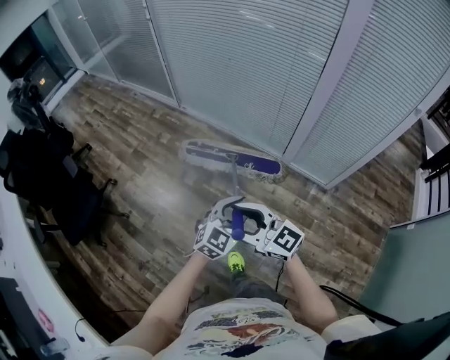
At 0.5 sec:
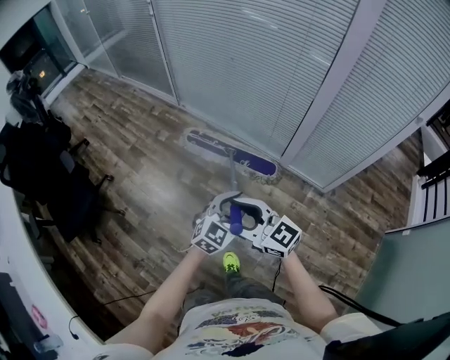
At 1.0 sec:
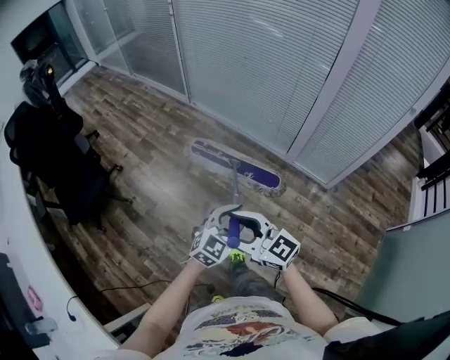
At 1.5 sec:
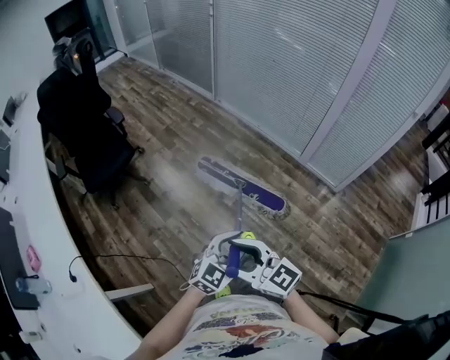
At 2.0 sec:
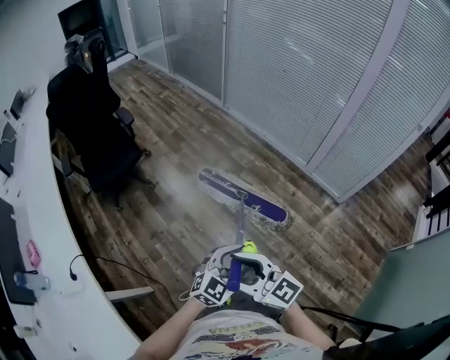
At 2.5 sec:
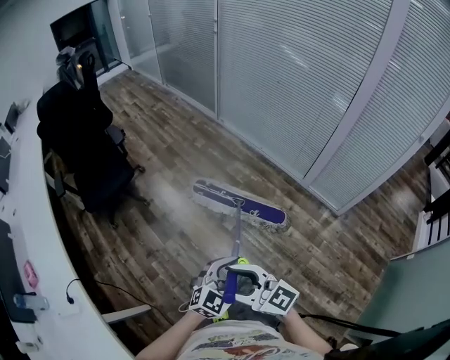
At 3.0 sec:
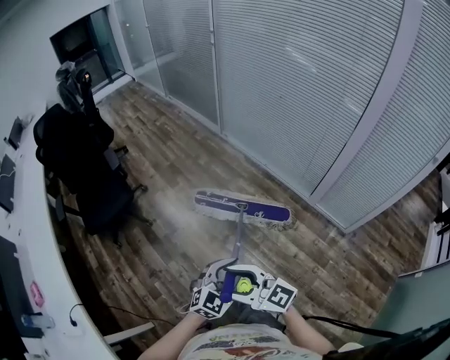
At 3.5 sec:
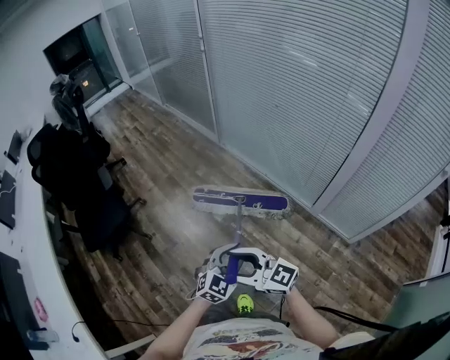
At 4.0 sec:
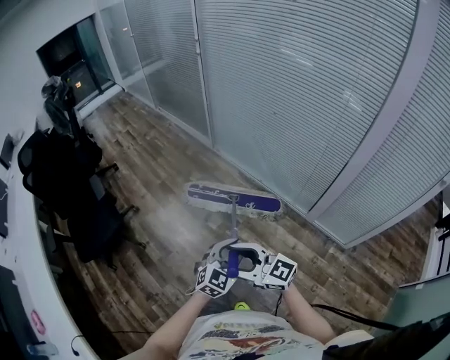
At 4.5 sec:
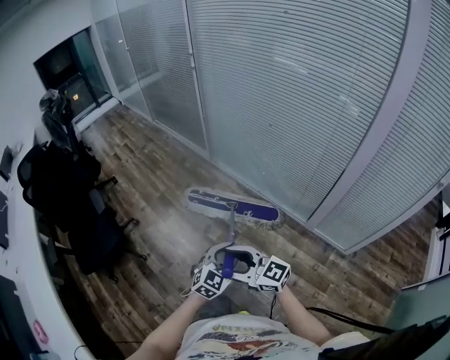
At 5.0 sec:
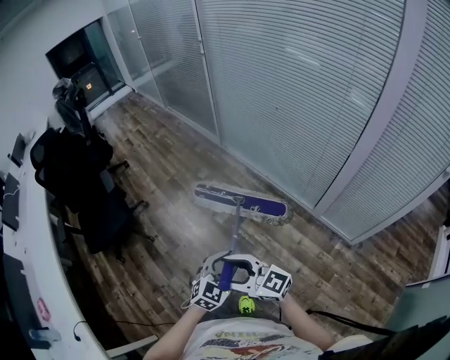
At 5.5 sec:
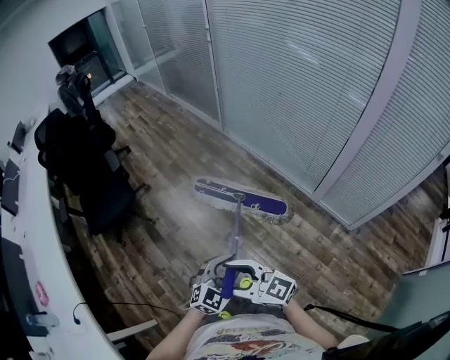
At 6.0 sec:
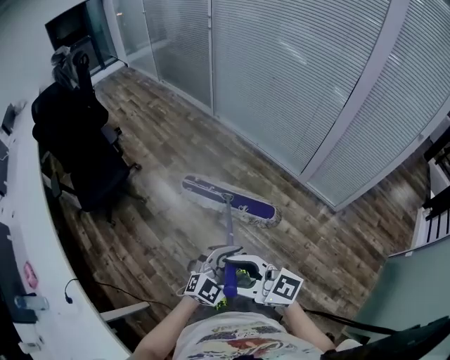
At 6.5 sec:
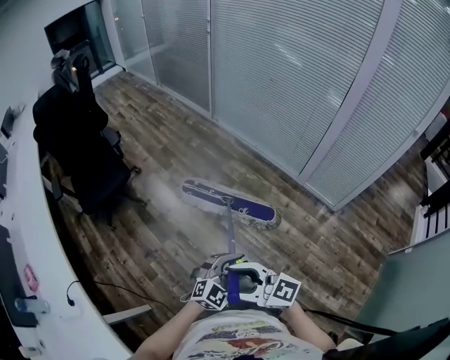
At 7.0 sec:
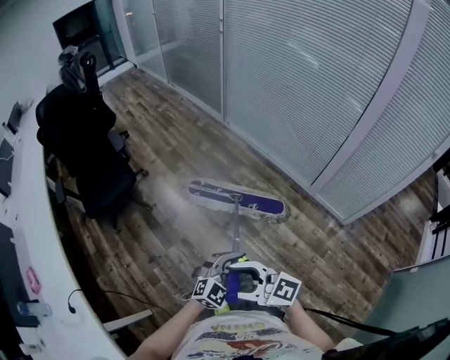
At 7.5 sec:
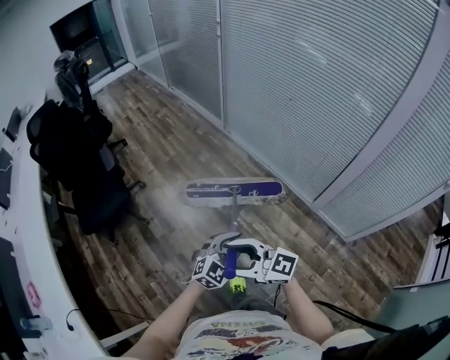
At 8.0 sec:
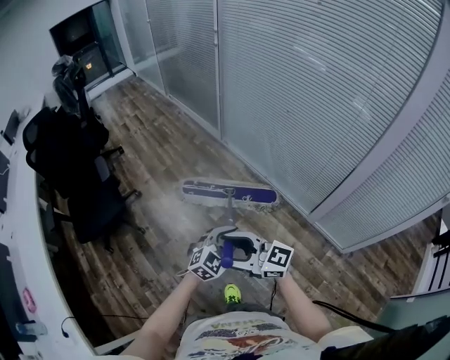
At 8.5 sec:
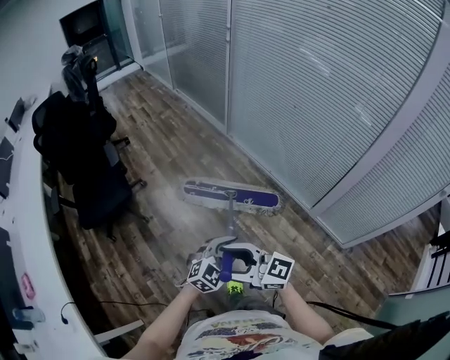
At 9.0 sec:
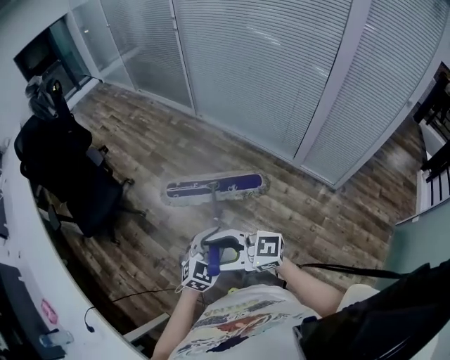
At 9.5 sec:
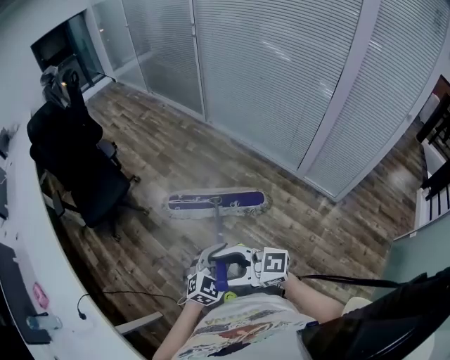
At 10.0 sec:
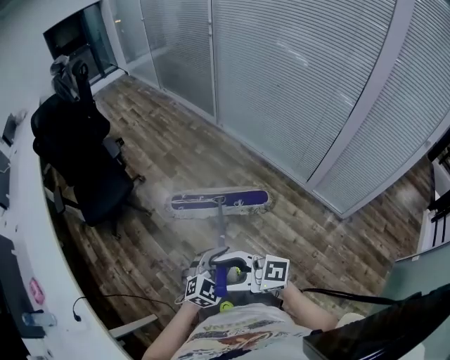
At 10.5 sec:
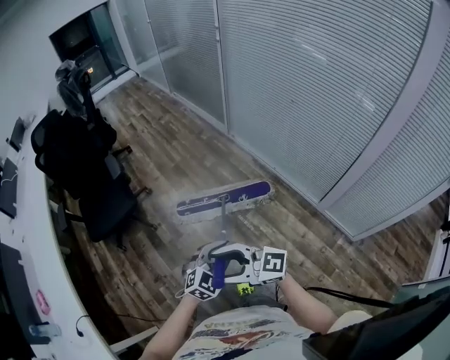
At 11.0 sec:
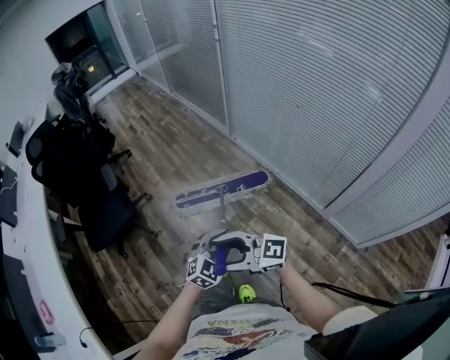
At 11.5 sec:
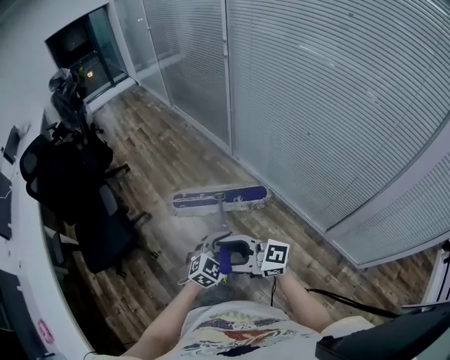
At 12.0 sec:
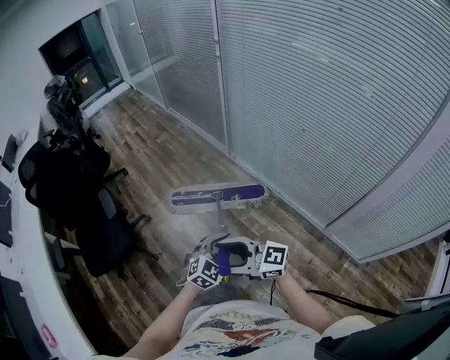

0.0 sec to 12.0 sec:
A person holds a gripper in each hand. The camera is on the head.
0.0 sec to 2.0 sec: The two grippers travel together, backward and to the left, roughly 50 cm.
2.0 sec to 4.0 sec: Both grippers are carried forward and to the right, roughly 50 cm.
4.0 sec to 6.0 sec: Both grippers are carried backward and to the left, roughly 40 cm.
6.0 sec to 8.0 sec: The pair of grippers is taken forward and to the right, approximately 40 cm.
8.0 sec to 10.0 sec: Both grippers travel together backward and to the left, some 35 cm.
10.0 sec to 12.0 sec: The pair of grippers is taken roughly 50 cm.

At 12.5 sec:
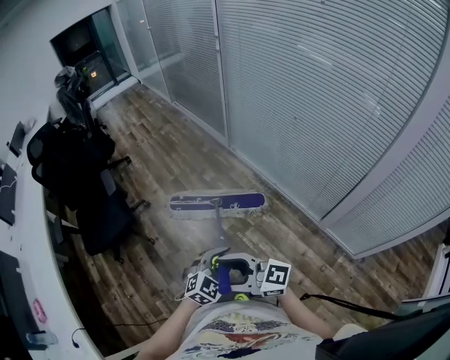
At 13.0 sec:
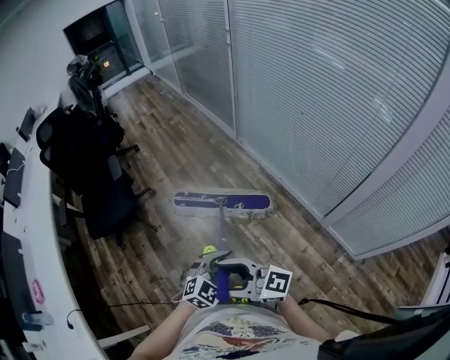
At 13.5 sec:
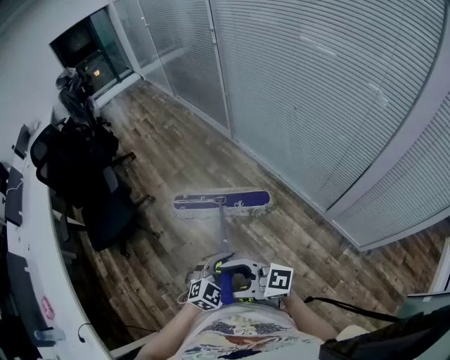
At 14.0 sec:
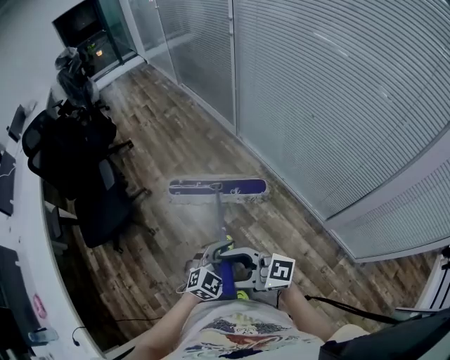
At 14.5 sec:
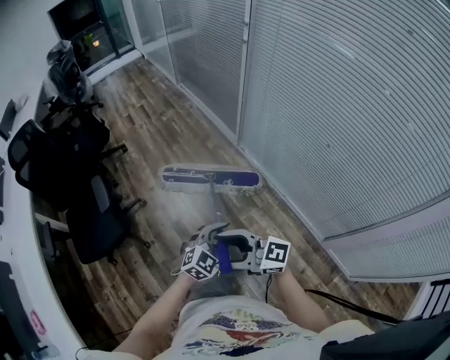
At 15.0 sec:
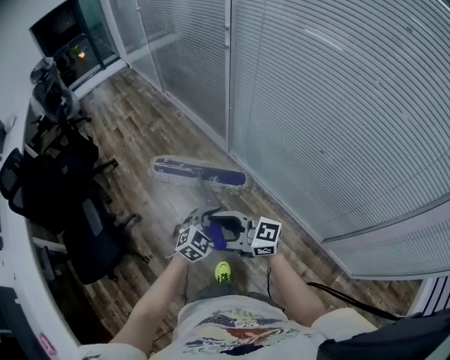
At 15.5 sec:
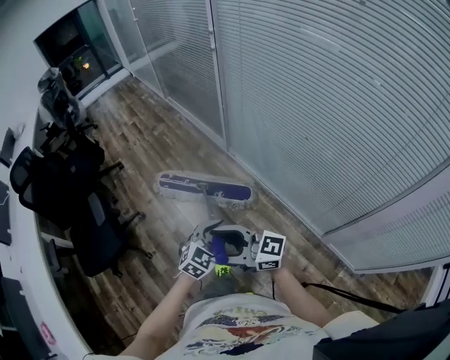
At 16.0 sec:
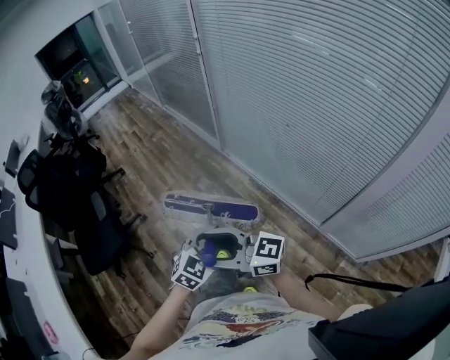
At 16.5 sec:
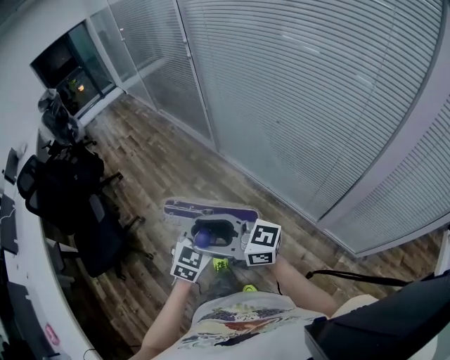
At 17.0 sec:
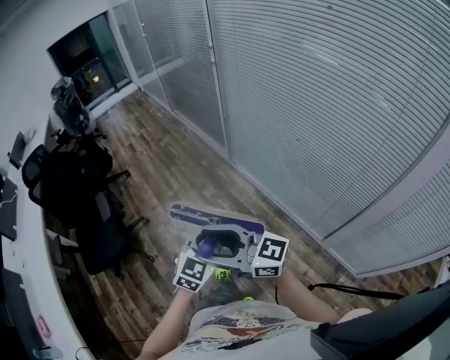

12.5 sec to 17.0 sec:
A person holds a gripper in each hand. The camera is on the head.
12.5 sec to 14.5 sec: The left gripper shifts by about 35 cm, while the right gripper changes place by roughly 35 cm.
14.5 sec to 17.0 sec: The left gripper ends up approximately 20 cm from where it was, while the right gripper ends up approximately 20 cm from where it was.

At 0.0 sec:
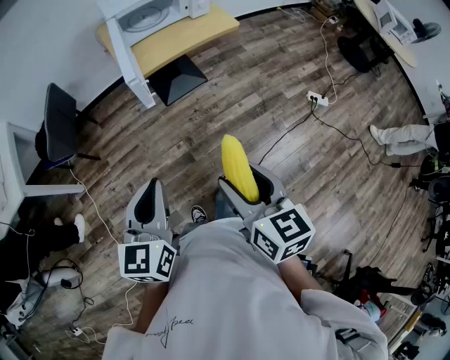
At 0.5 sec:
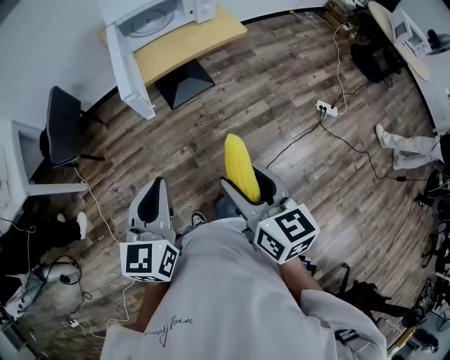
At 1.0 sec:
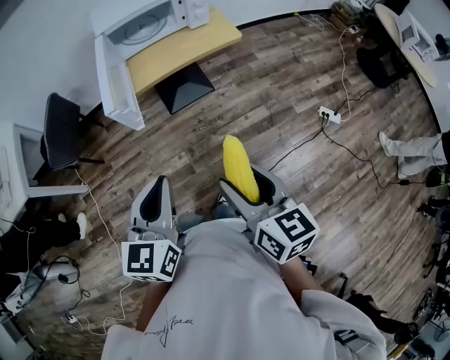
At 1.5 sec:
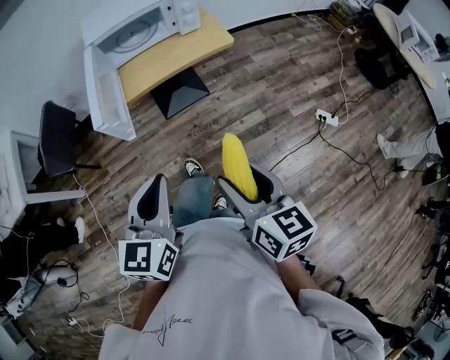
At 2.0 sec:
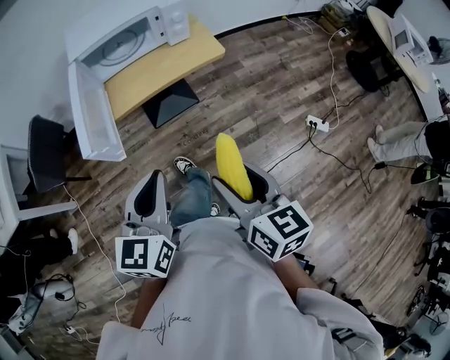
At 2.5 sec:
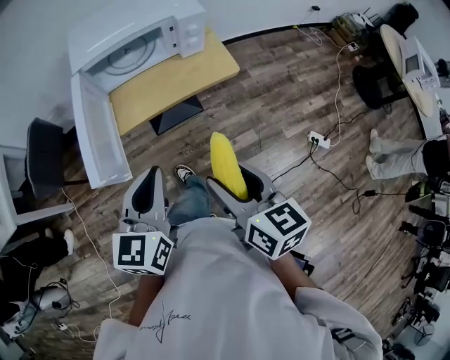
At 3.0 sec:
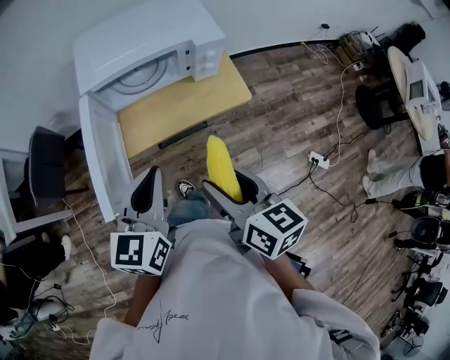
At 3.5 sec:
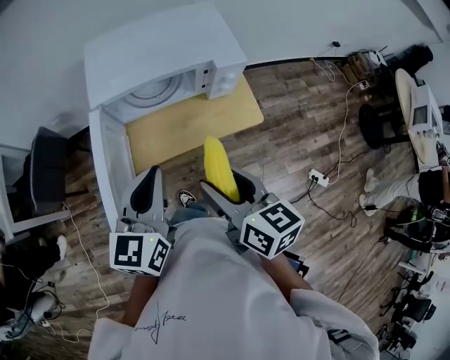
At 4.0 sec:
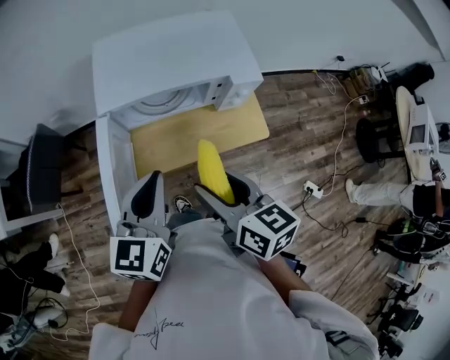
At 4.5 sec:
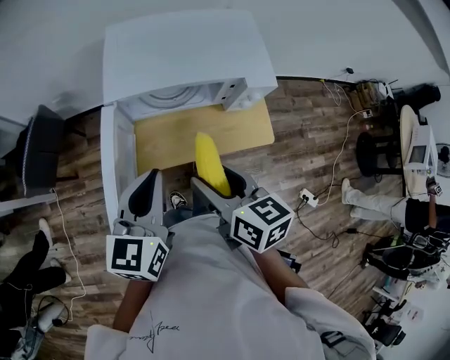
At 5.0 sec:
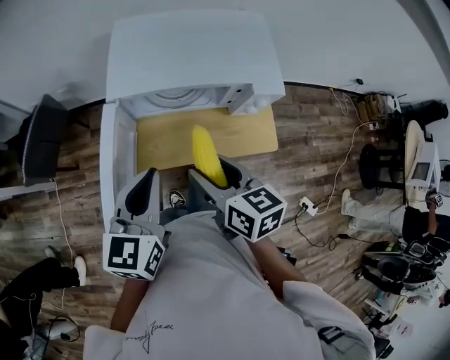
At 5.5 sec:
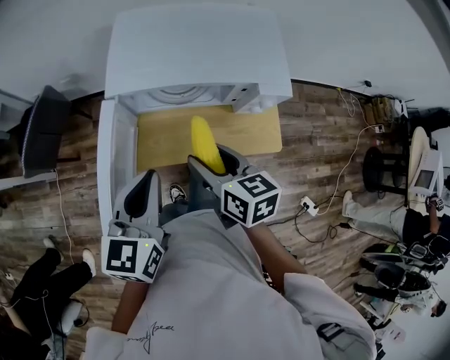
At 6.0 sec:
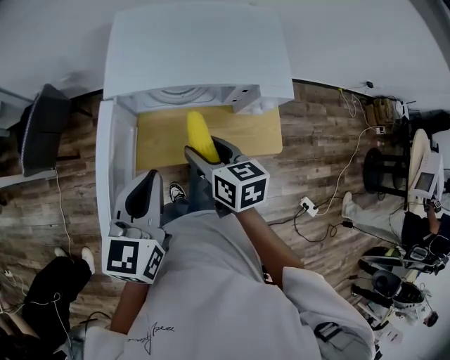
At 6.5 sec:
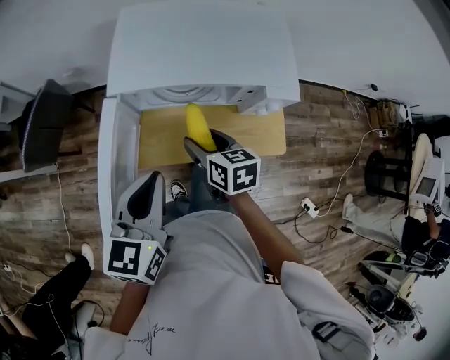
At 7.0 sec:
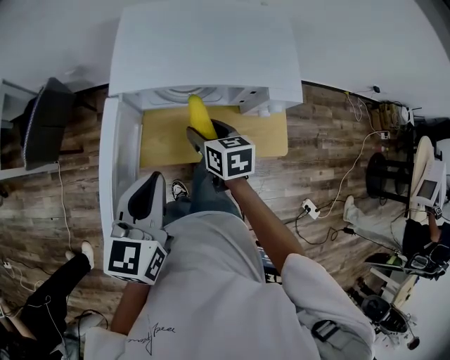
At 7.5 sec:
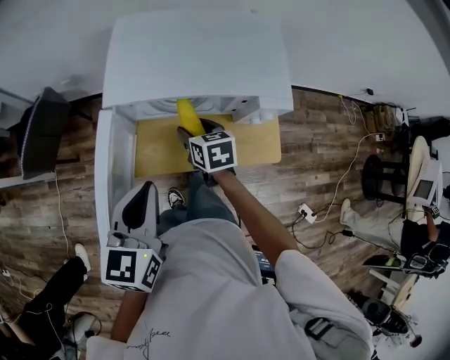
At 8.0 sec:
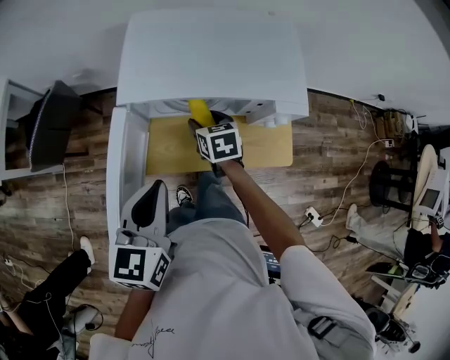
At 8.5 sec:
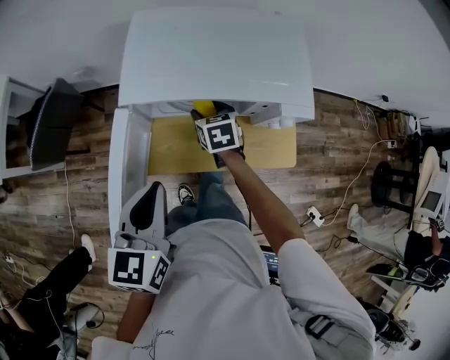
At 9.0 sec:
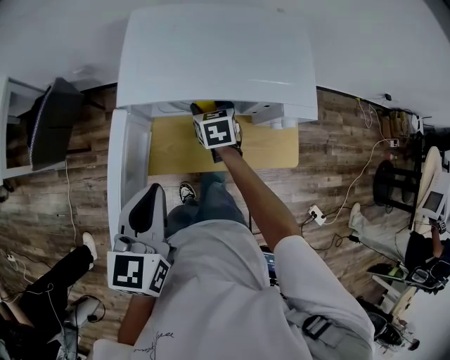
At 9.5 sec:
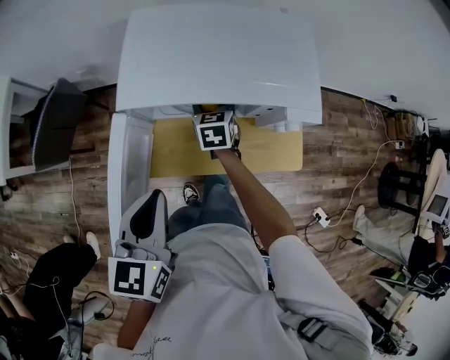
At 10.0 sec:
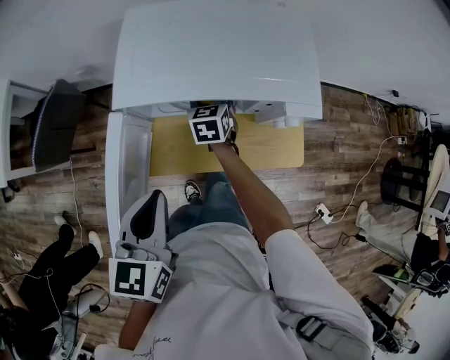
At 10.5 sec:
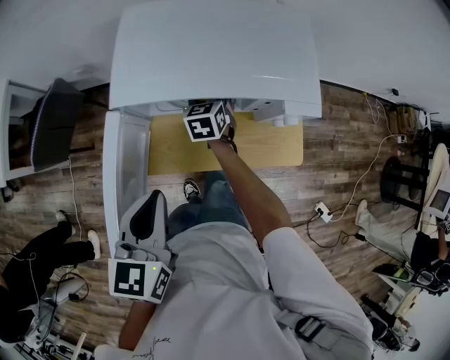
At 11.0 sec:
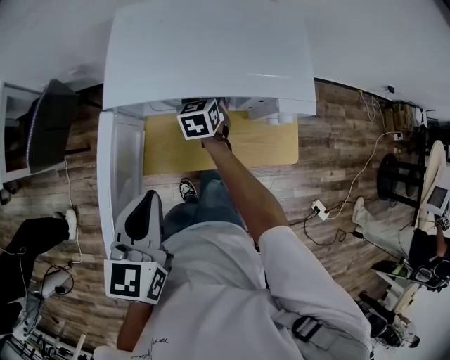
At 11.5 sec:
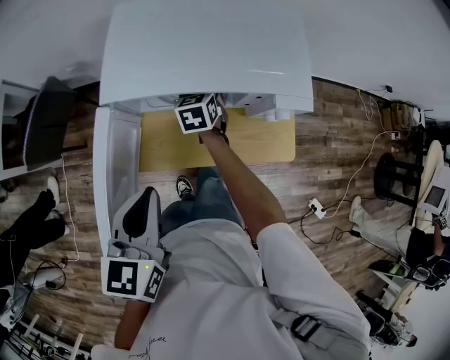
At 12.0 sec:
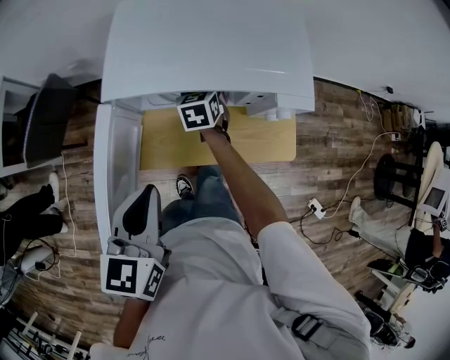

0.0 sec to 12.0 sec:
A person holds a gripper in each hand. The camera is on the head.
0.0 sec to 2.0 sec: Both grippers travel together forward and to the right, roughly 30 cm.
2.0 sec to 4.0 sec: The two grippers go about 35 cm forward.
4.0 sec to 6.0 sec: The right gripper shifts about 15 cm downward and forward.
6.0 sec to 8.0 sec: The right gripper is displaced forward and downward by approximately 15 cm.
8.0 sec to 10.0 sec: The right gripper is displaced forward by approximately 10 cm.
10.0 sec to 12.0 sec: Both grippers stay about where they are.
